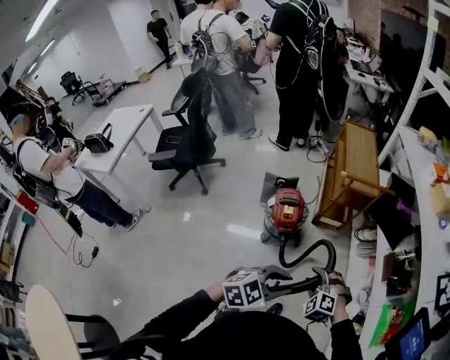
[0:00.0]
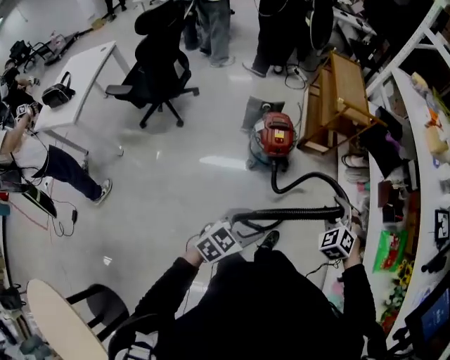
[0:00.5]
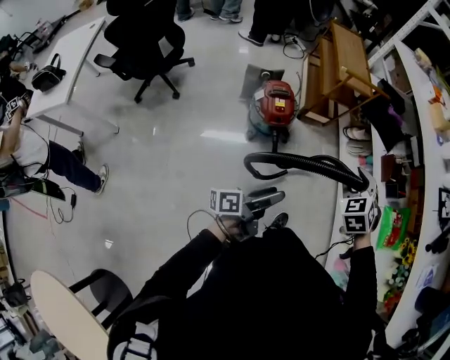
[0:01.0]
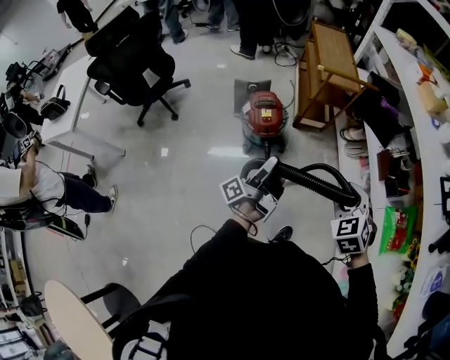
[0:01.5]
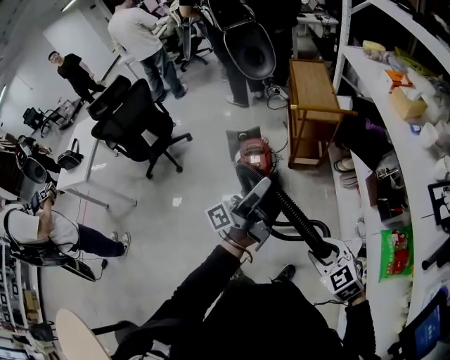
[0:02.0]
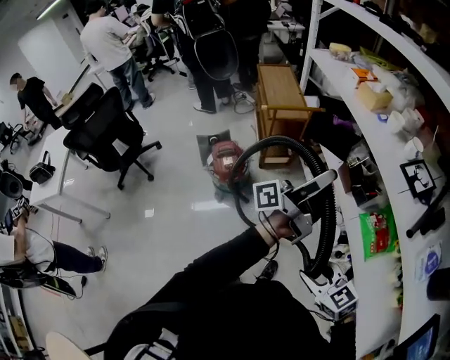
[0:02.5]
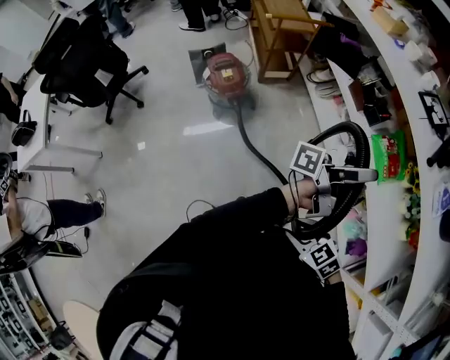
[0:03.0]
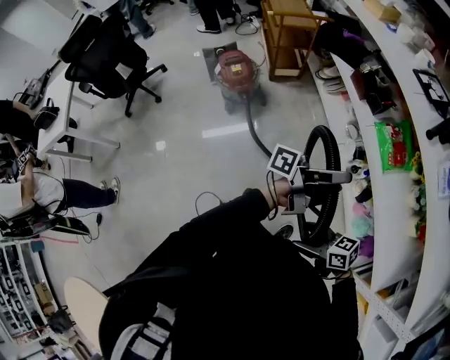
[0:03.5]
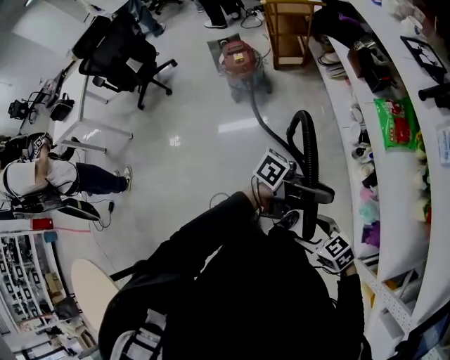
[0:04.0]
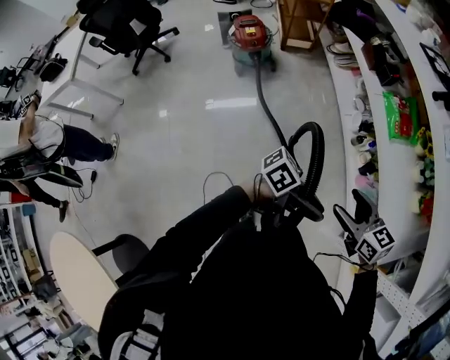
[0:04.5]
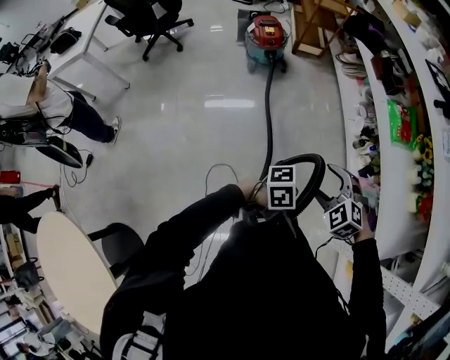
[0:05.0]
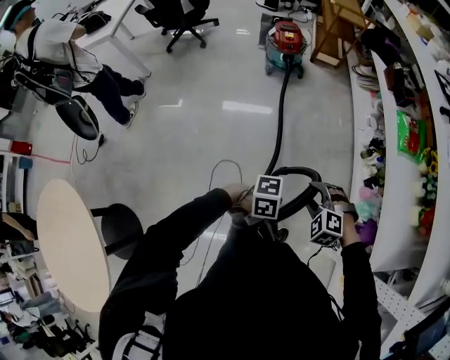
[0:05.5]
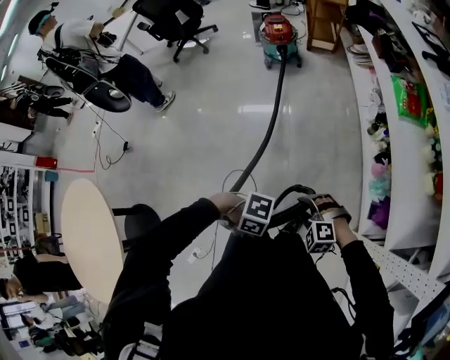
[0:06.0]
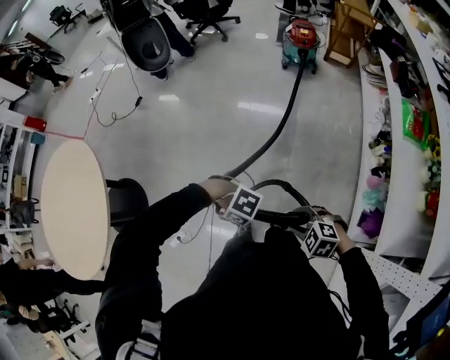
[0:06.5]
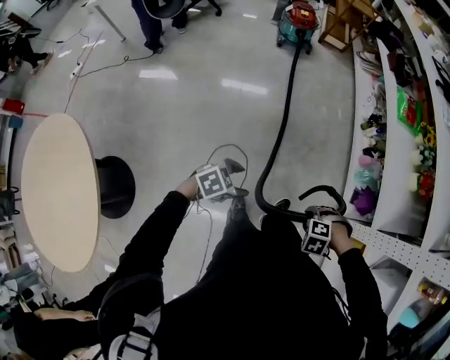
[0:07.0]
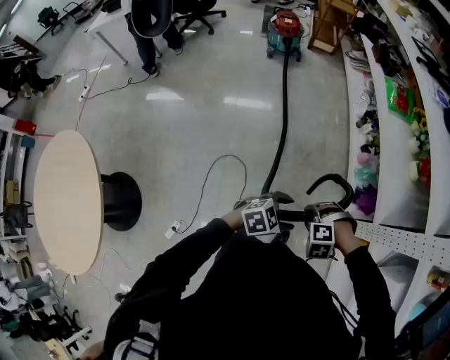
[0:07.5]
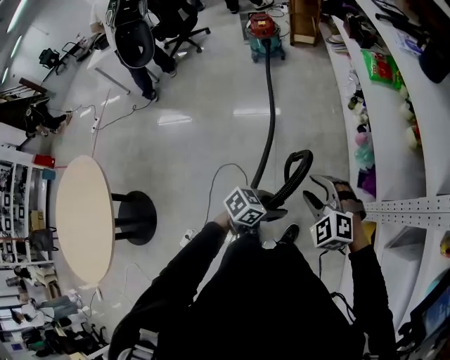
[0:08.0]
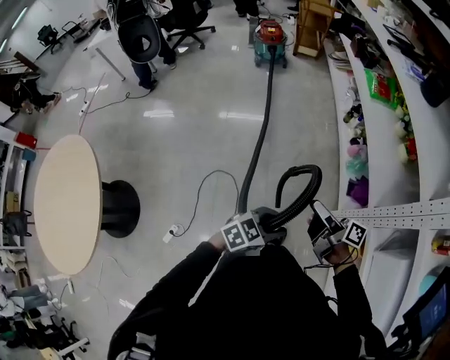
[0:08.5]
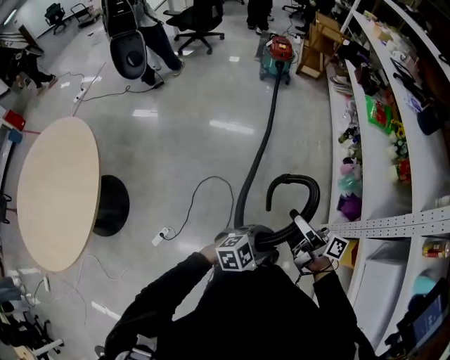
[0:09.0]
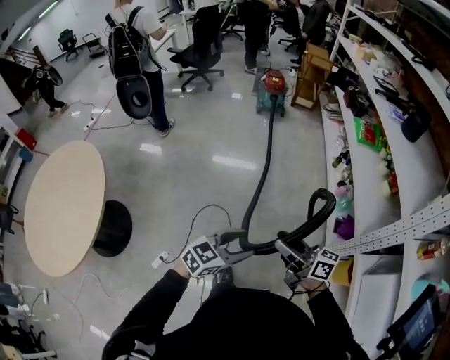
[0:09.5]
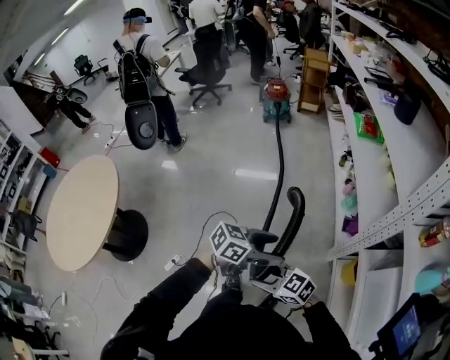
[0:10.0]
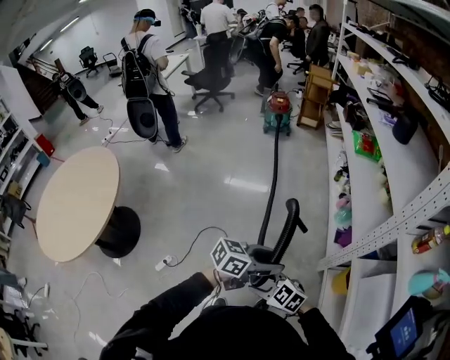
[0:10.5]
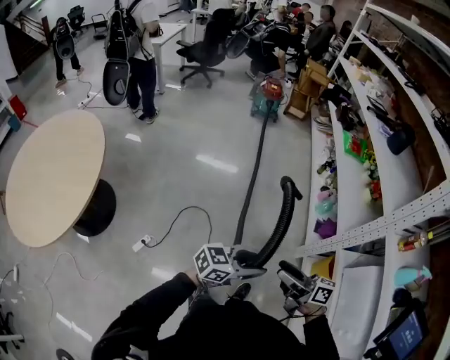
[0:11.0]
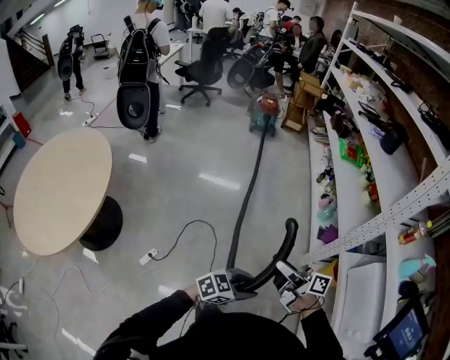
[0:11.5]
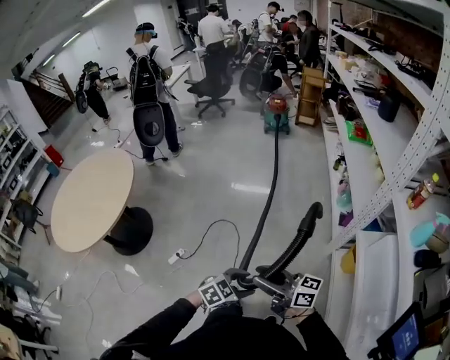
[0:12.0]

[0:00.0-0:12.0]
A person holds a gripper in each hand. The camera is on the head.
0.0 to 2.0 s: The right gripper moves some 20 cm, and turns by some 40 degrees, while the left gripper ends up some 15 cm from where it was, points its fingers some 70 degrees further upward, and opens its fingers.
2.0 to 4.0 s: Both grippers are carried roughly 50 cm. The right gripper turns by some 30 degrees, and opens its fingers, while the left gripper changes its angle by roughly 70 degrees.
4.0 to 6.0 s: The left gripper moves approximately 60 cm, and tilts its fingers about 50 degrees downward; the right gripper goes upward and returns, some 10 cm each way, twists approximately 60 degrees counterclockwise, seen from behind, and closes.
6.0 to 8.0 s: The left gripper moves about 20 cm, rotates about 60 degrees, and opens, then closes again; the right gripper moves some 25 cm, and turns by some 20 degrees.
8.0 to 10.0 s: The right gripper moves some 10 cm upward and comes back, and turns by roughly 50 degrees. The left gripper shifts by approximately 25 cm, and opens up.
10.0 to 12.0 s: The left gripper ends up about 35 cm from where it was, and rotates some 30 degrees. The right gripper ends up approximately 20 cm from where it was, angles its fingers upward, by roughly 30 degrees, and opens and closes again.

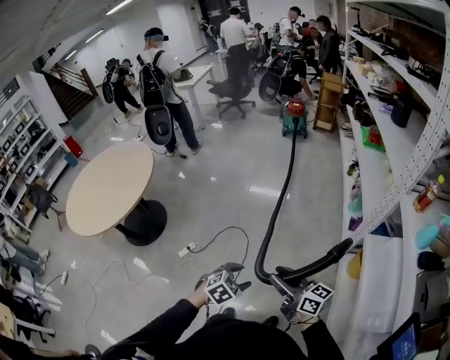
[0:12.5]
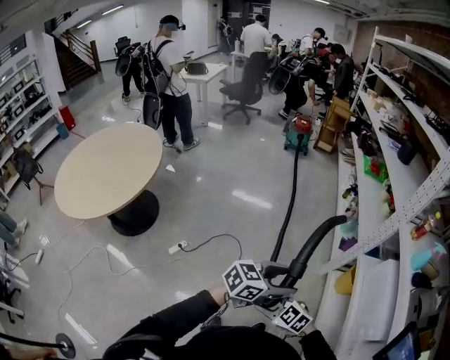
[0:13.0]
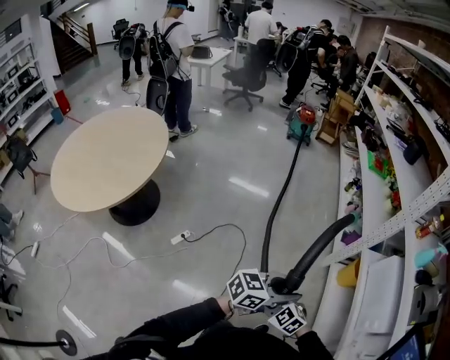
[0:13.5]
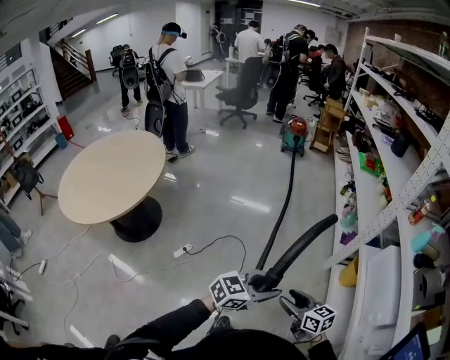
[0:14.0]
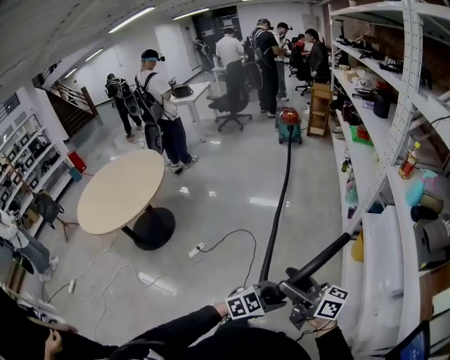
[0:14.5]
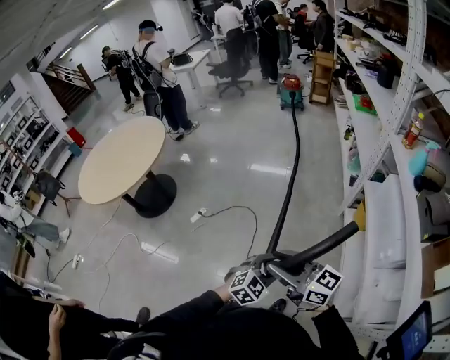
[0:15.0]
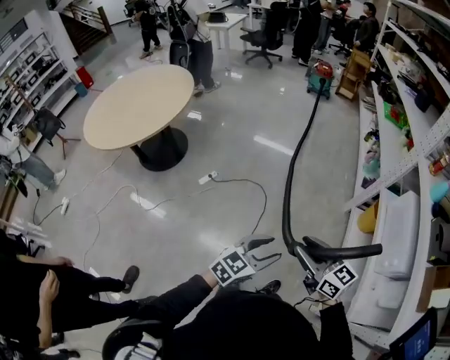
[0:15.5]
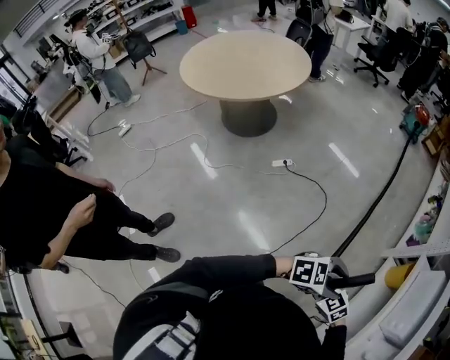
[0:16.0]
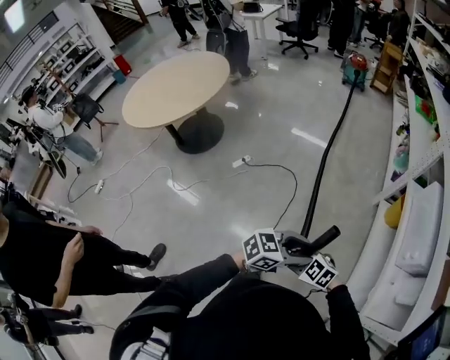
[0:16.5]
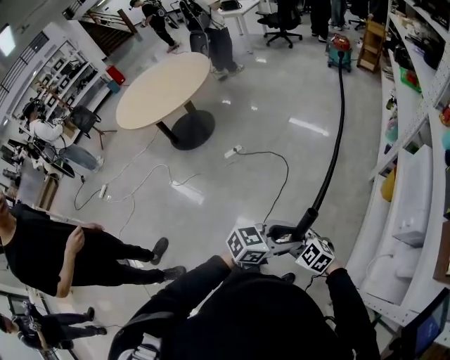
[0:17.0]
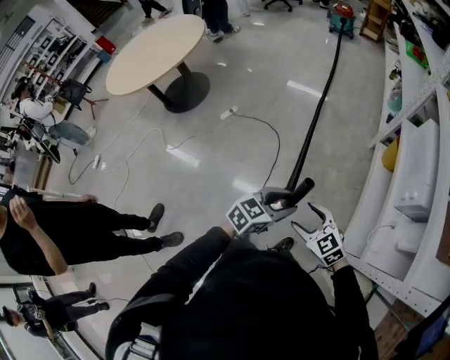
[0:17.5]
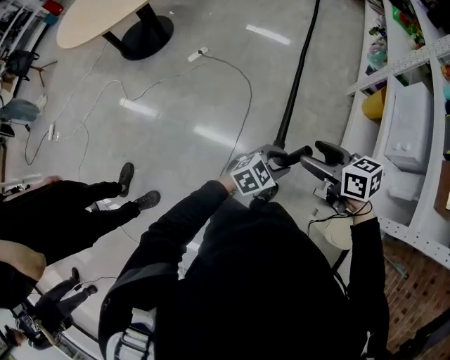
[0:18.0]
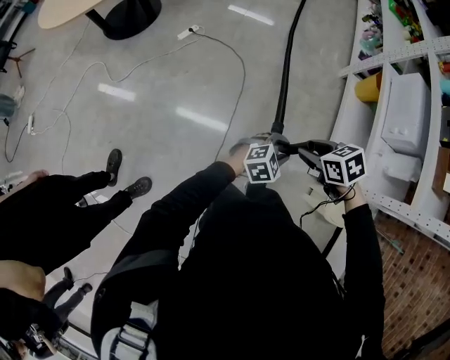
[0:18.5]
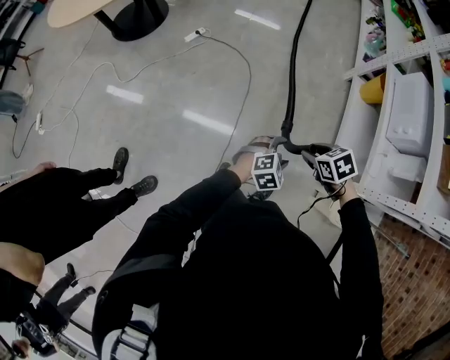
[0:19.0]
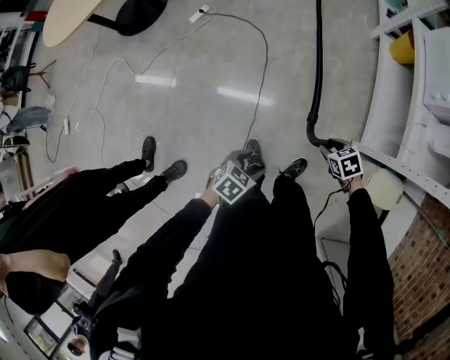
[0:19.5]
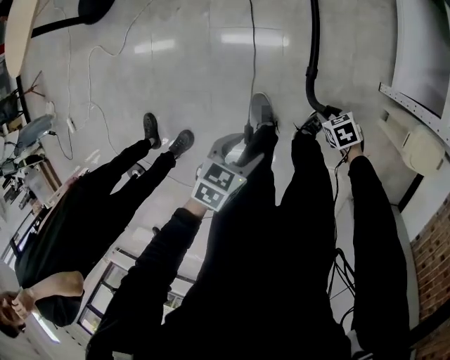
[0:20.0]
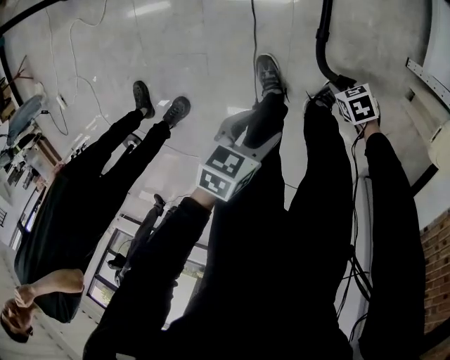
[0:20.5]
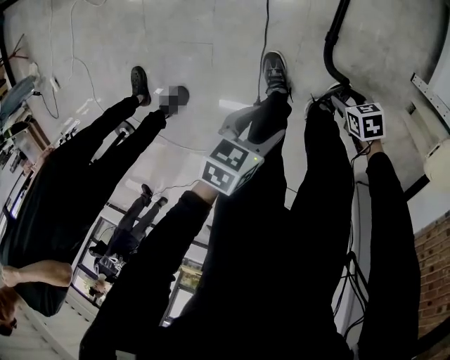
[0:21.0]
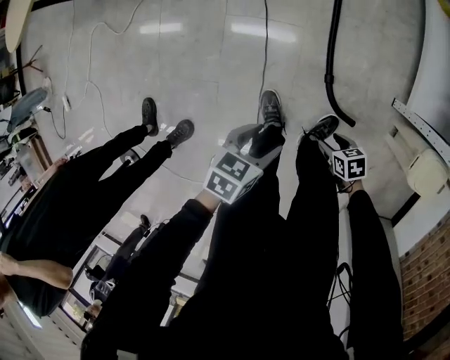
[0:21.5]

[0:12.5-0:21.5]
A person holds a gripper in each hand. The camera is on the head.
12.5 to 14.5 s: The left gripper ends up some 30 cm from where it was, and changes its angle by about 30 degrees. Meanwhile the right gripper ends up approximately 25 cm from where it was, and opens.
14.5 to 17.0 s: The left gripper goes up and down, approximately 10 cm each way, reversing 2 times, and turns by roughly 40 degrees; the right gripper is displaced downward by roughly 25 cm, tilts its fingers roughly 50 degrees downward, and closes up.
17.0 to 19.5 s: The right gripper travels downward by about 25 cm, twists roughly 50 degrees clockwise, seen from behind, and opens, then closes again. Meanwhile the left gripper ends up some 50 cm from where it was, and tips its fingers downward by approximately 40 degrees.
19.5 to 21.5 s: The right gripper travels downward by roughly 25 cm, and turns by some 20 degrees. The left gripper heads downward, covering some 10 cm.

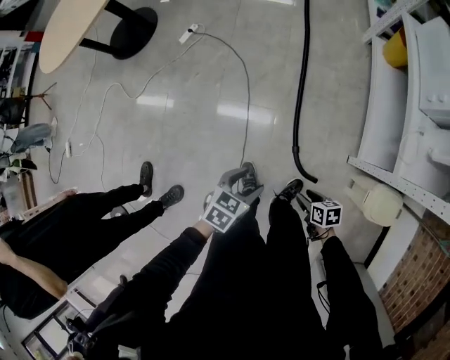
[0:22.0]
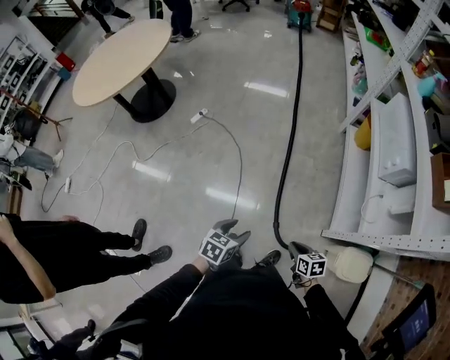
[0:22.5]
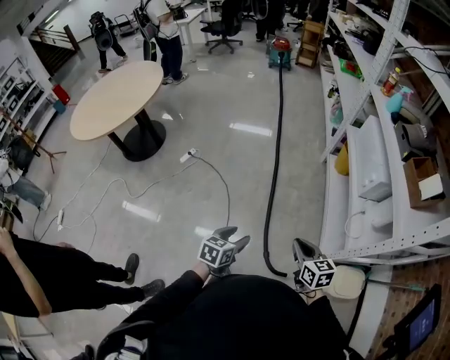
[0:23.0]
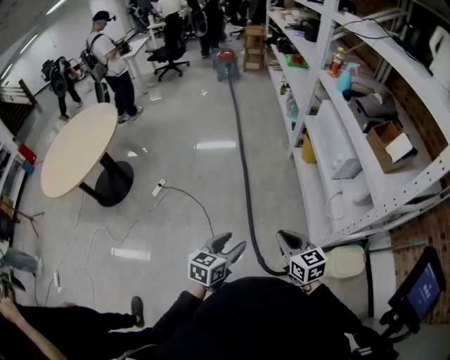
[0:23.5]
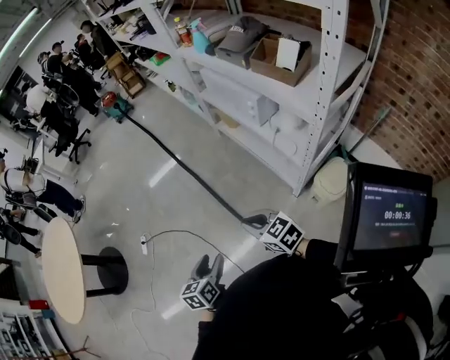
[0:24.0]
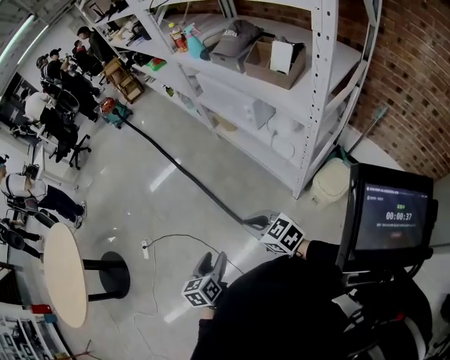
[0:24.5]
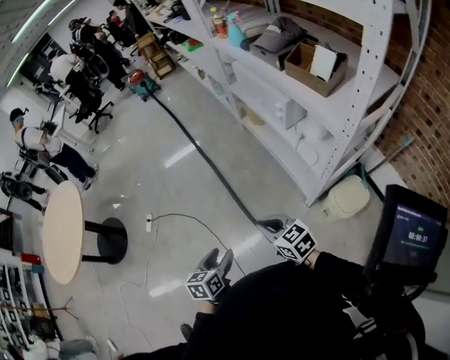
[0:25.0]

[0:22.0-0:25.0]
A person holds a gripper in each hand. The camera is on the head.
22.0 to 23.5 s: The left gripper goes approximately 25 cm upward, and rotates roughly 30 degrees; the right gripper travels upward by roughly 40 cm, tilts its fingers roughly 30 degrees upward, and closes.
23.5 to 25.0 s: The left gripper heads downward, covering about 5 cm. The right gripper changes place by roughly 5 cm.

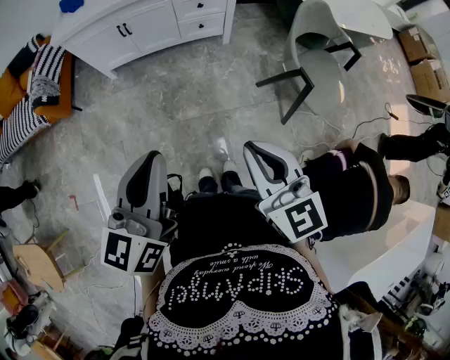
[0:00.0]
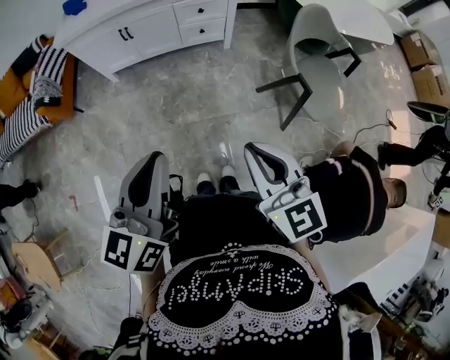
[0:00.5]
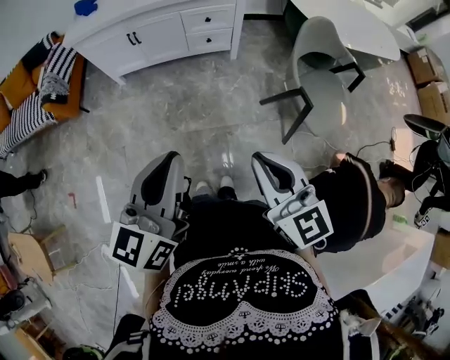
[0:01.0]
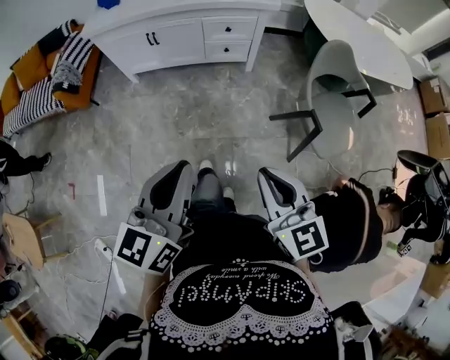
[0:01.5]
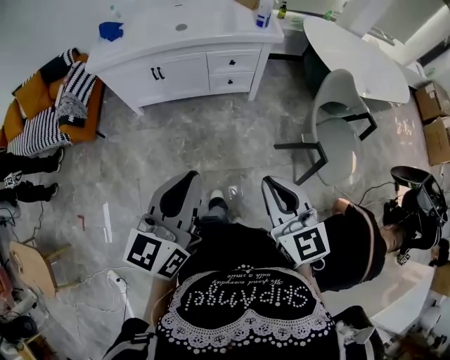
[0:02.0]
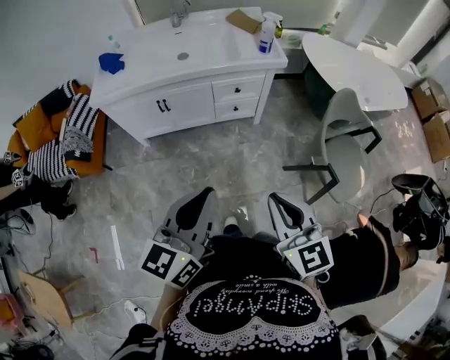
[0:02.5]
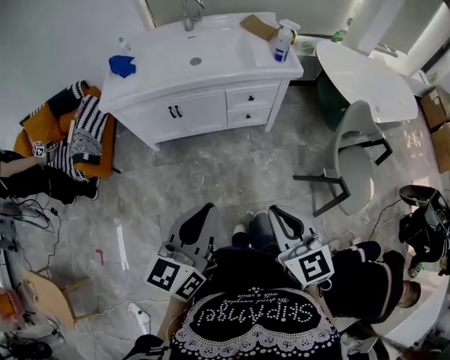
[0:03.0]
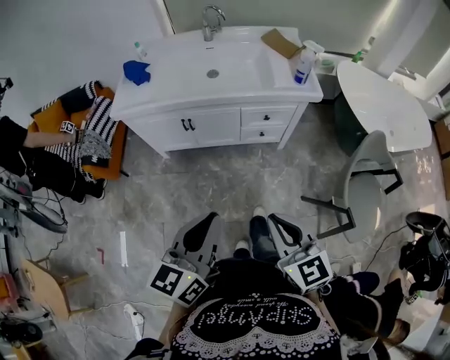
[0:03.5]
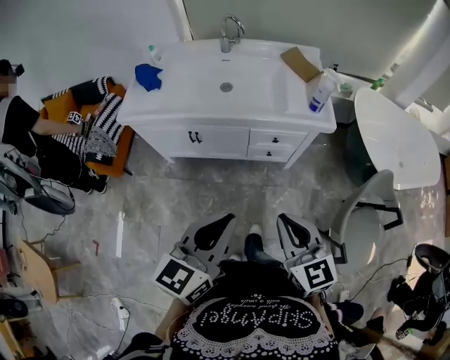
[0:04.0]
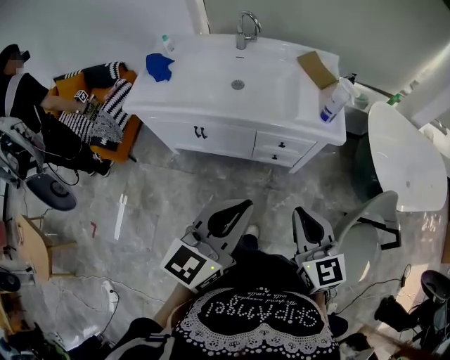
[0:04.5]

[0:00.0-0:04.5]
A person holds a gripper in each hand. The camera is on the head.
0.0 to 2.0 s: The two grippers go about 10 cm forward.
2.0 to 4.5 s: Both grippers travel together forward, about 30 cm.
